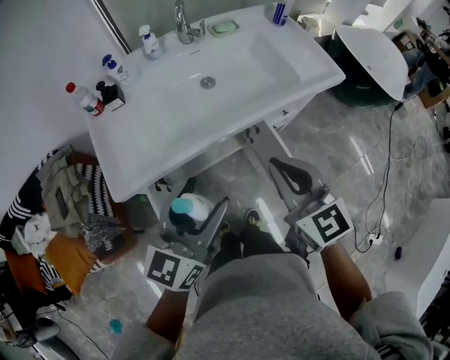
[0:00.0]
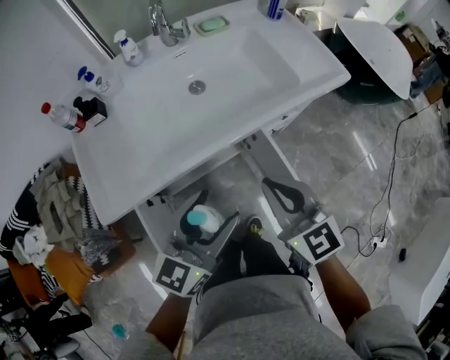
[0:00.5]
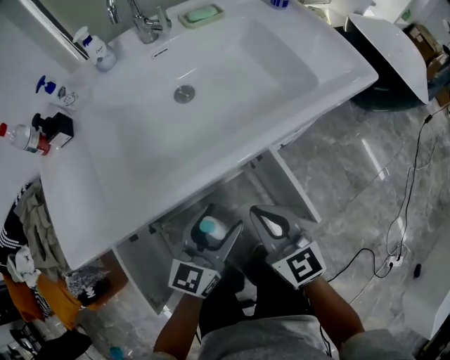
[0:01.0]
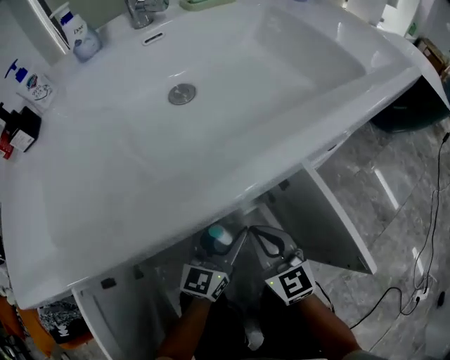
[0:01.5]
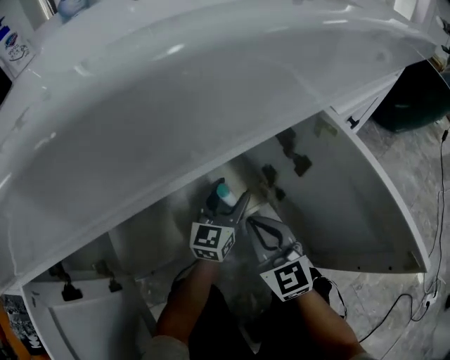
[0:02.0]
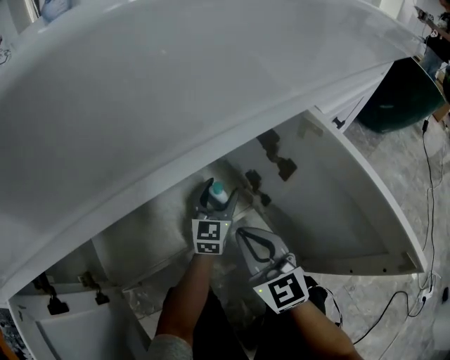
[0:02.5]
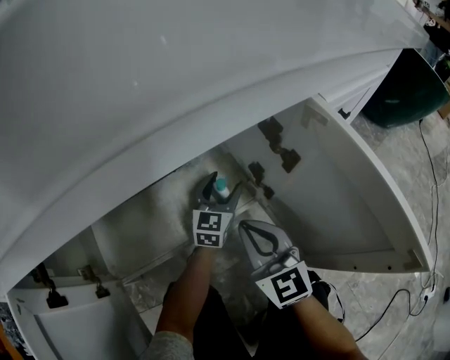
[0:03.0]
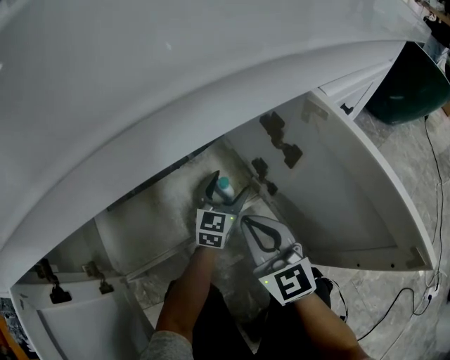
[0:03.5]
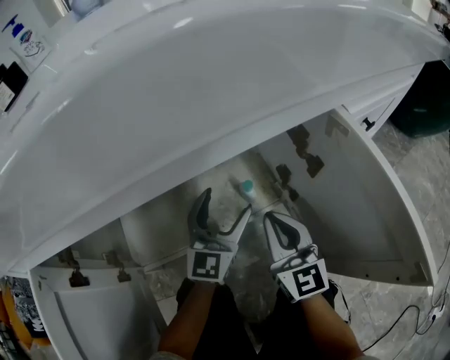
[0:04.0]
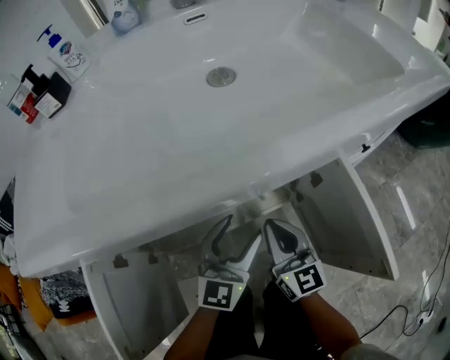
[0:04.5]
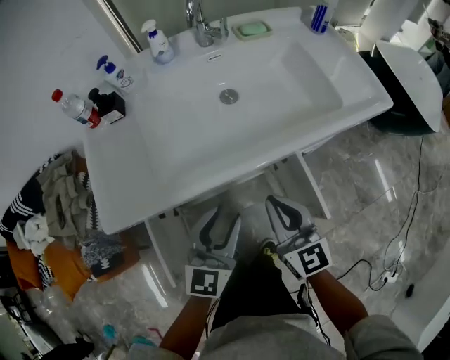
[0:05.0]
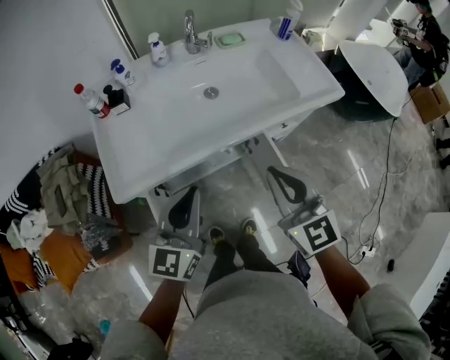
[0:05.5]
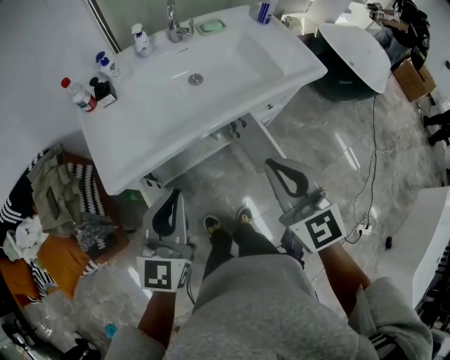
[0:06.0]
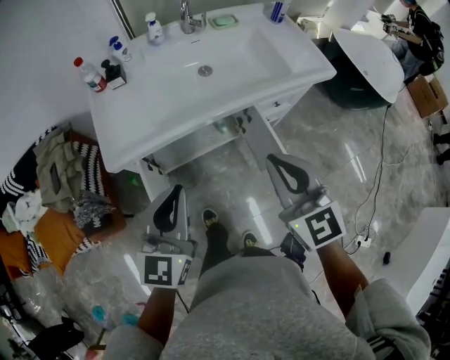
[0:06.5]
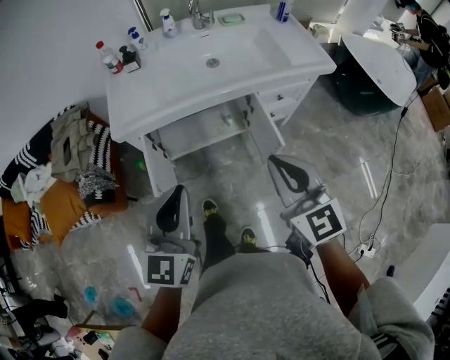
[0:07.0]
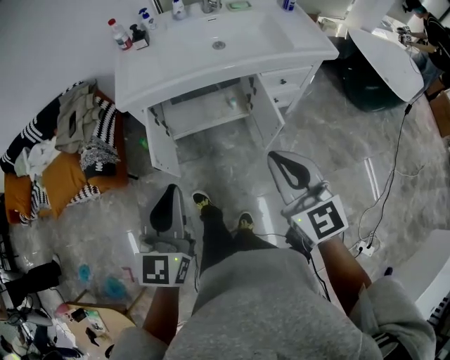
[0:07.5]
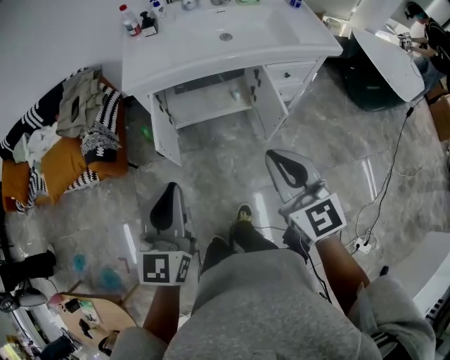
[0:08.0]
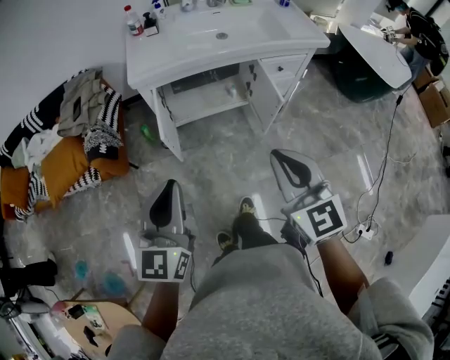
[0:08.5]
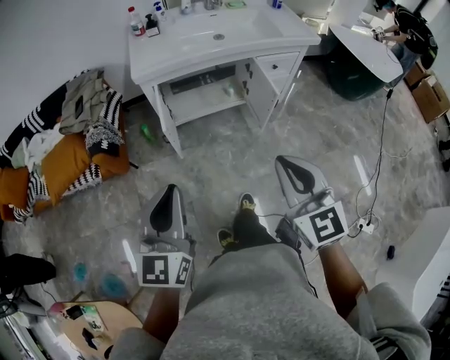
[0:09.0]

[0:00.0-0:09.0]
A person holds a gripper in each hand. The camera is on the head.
0:00.0 to 0:02.0: The left gripper is displaced downward and forward by roughly 70 cm, while the right gripper heads downward, covering some 60 cm.
0:02.0 to 0:04.5: The left gripper is displaced upward and backward by approximately 20 cm; the right gripper is displaced upward by approximately 10 cm, and changes its angle by approximately 20 degrees.
0:04.5 to 0:07.0: Both grippers travel together upward and backward, some 60 cm. The right gripper rotates about 20 degrees. Meanwhile the left gripper rotates approximately 20 degrees, and closes its fingers.
0:07.0 to 0:09.0: The right gripper travels backward by some 30 cm. Meanwhile the left gripper travels backward and to the left by approximately 30 cm.

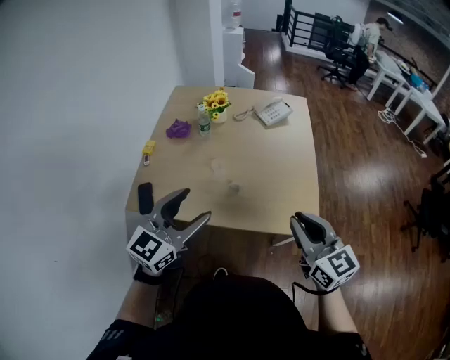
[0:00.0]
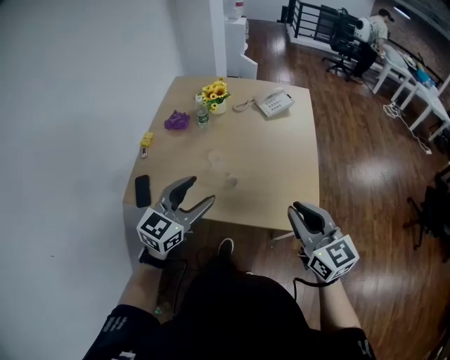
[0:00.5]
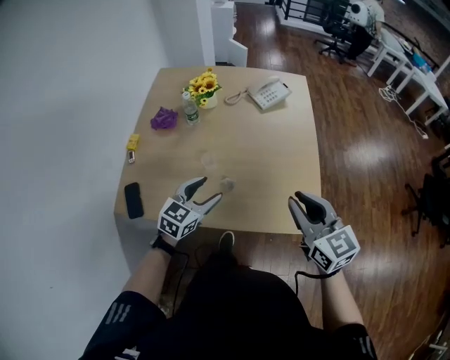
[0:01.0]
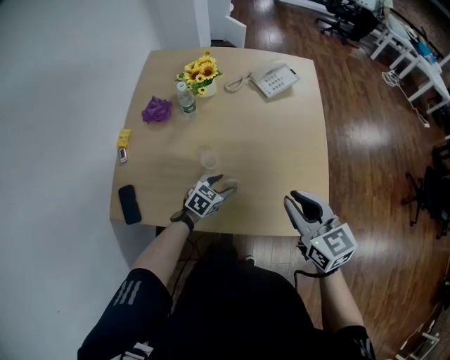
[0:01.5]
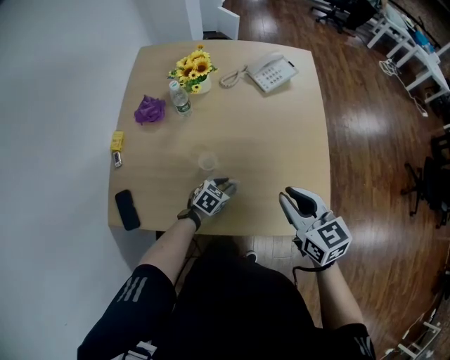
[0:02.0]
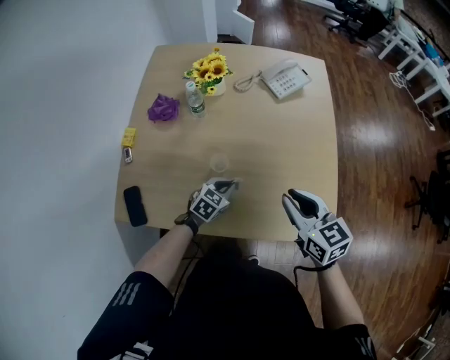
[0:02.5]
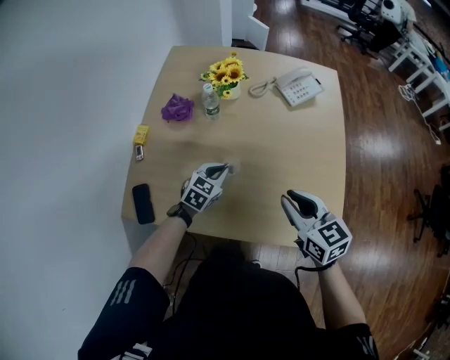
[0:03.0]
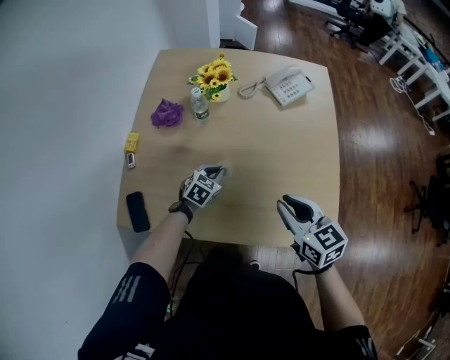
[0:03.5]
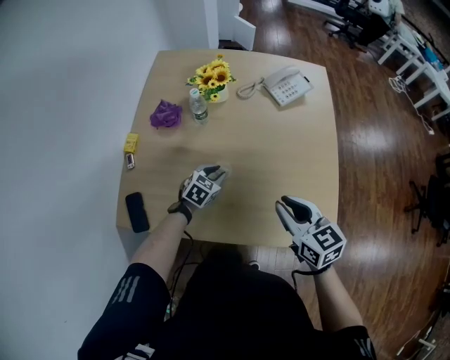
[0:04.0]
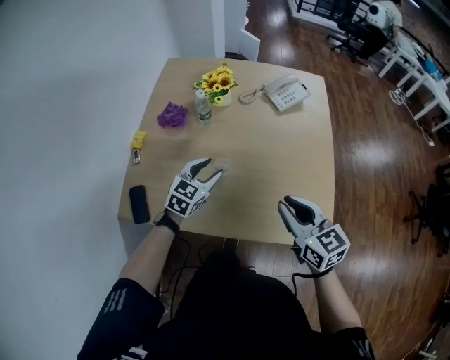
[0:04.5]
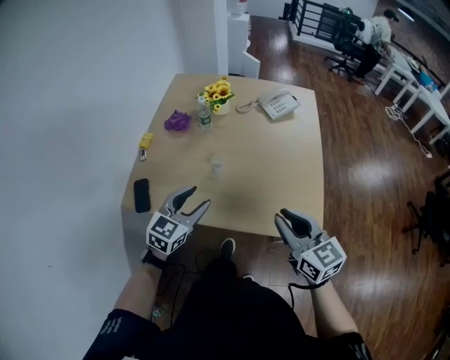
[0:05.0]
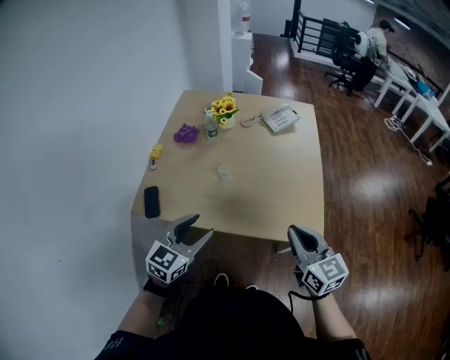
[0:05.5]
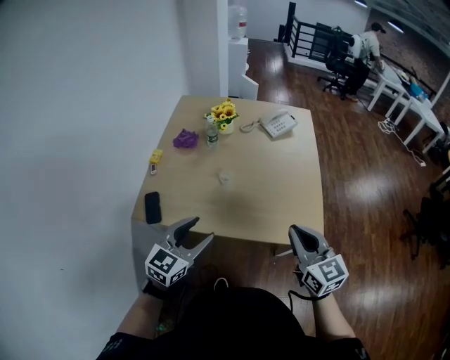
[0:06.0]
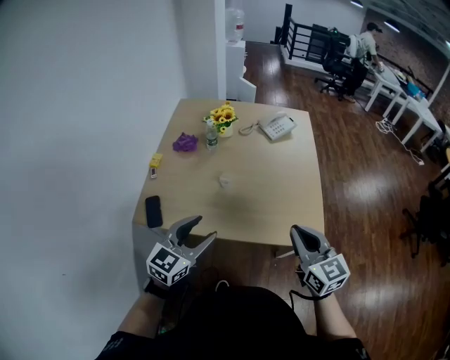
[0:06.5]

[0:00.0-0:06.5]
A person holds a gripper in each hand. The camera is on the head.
0:00.0 to 0:02.0: The right gripper goes about 25 cm forward and downward, while the left gripper shifts approximately 50 cm downward and forward, angles its fingers downward, by roughly 40 degrees, and closes its fingers.
0:02.0 to 0:04.5: The left gripper goes up and down, roughly 20 cm each way, reversing 2 times, and rotates roughly 30 degrees; the right gripper shifts by approximately 5 cm.
0:04.5 to 0:06.5: The right gripper is displaced backward and upward by roughly 20 cm. The left gripper goes approximately 30 cm backward and upward.

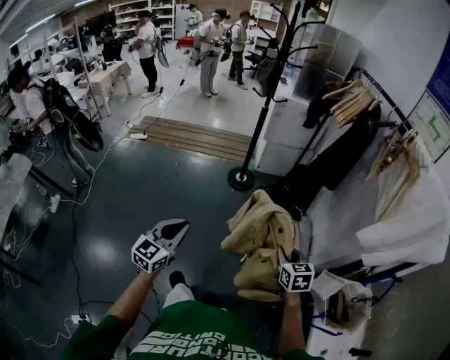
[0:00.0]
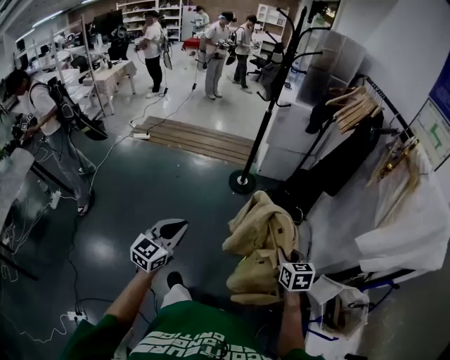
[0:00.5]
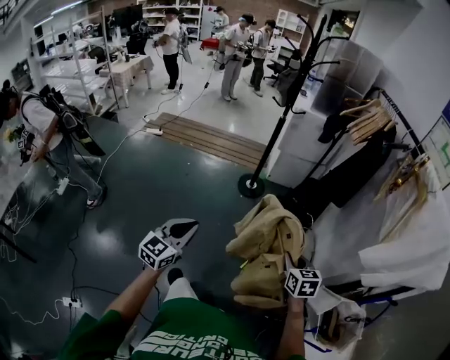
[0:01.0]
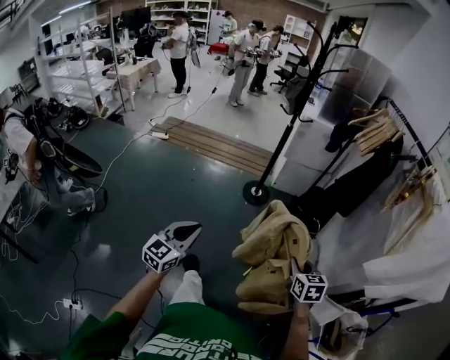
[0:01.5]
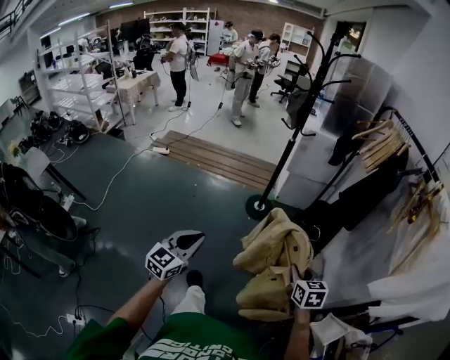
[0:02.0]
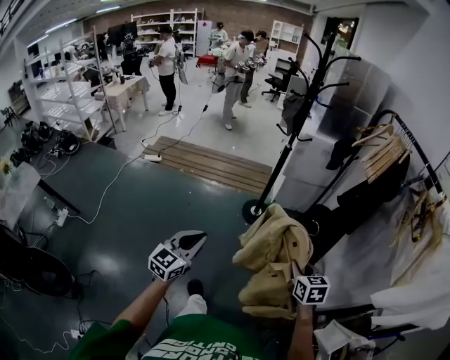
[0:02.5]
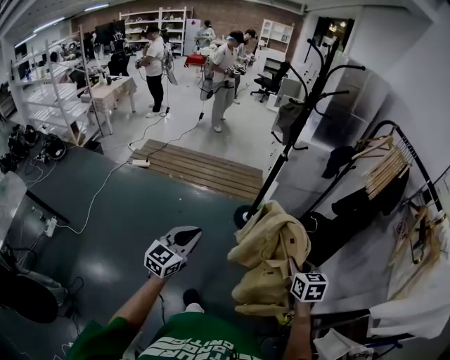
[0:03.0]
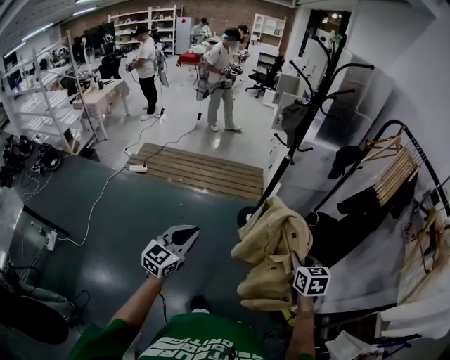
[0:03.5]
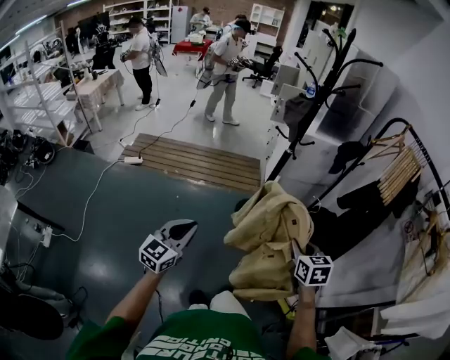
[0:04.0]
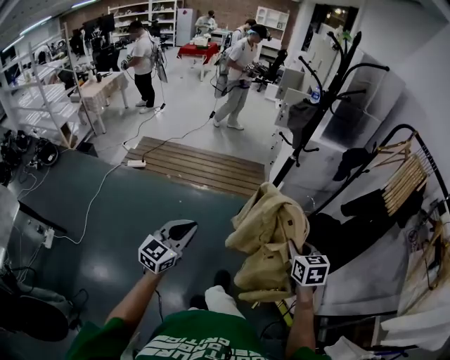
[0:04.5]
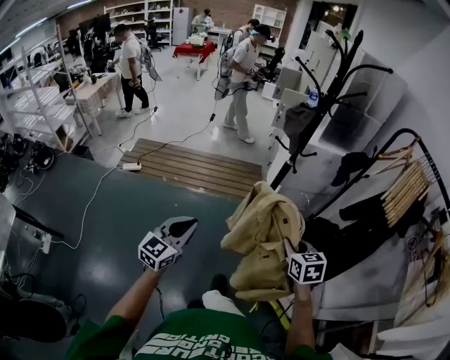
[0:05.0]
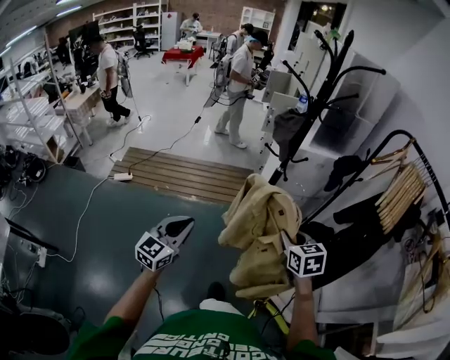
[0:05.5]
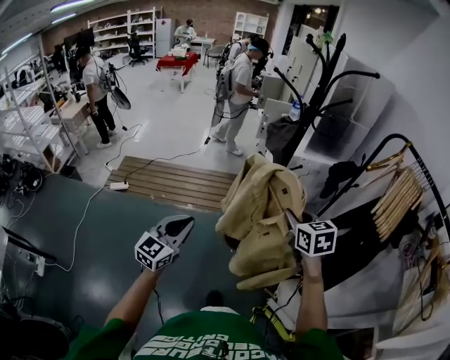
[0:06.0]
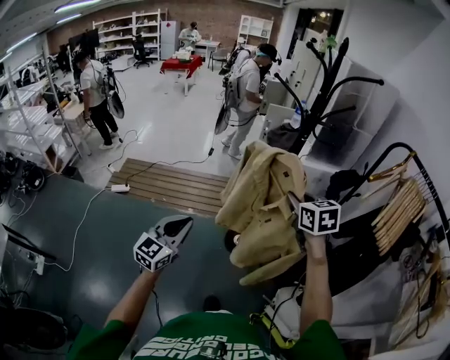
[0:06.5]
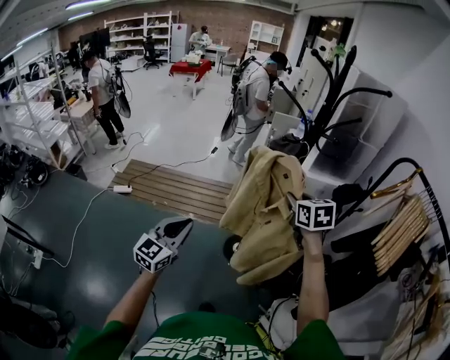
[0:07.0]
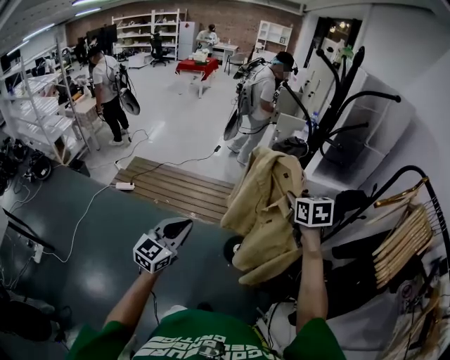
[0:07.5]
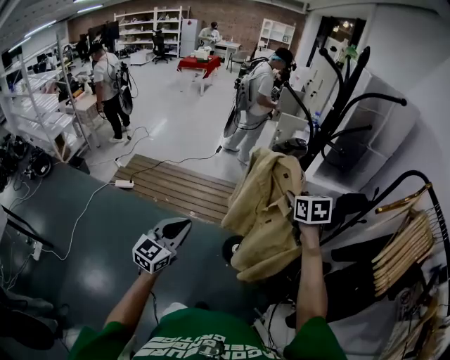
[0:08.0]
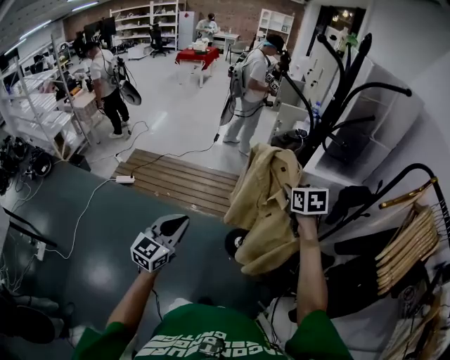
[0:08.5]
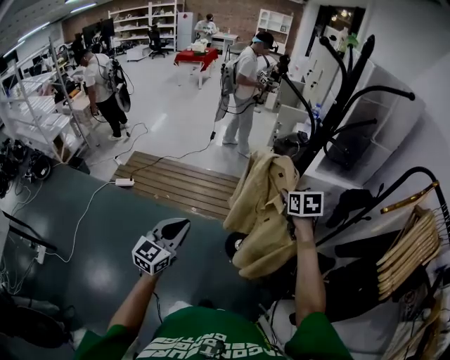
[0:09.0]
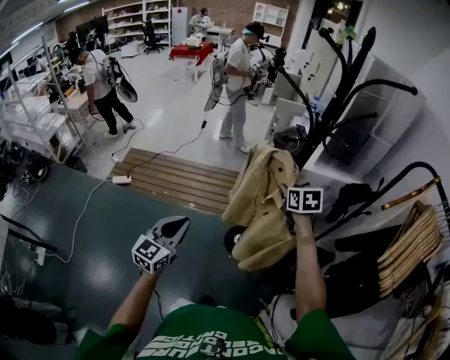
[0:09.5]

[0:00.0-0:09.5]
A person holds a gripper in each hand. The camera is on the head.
0:00.0 to 0:02.0: The grippers both shift forward by about 10 cm.
0:02.0 to 0:04.0: Both grippers travel together forward and to the left, about 30 cm.
0:04.0 to 0:05.5: The grippers both shift forward by about 15 cm.
0:05.5 to 0:07.5: The right gripper goes some 25 cm forward. The left gripper shifts roughly 15 cm forward.
0:07.5 to 0:09.5: The left gripper shifts by roughly 5 cm, while the right gripper shifts some 10 cm forward and downward.

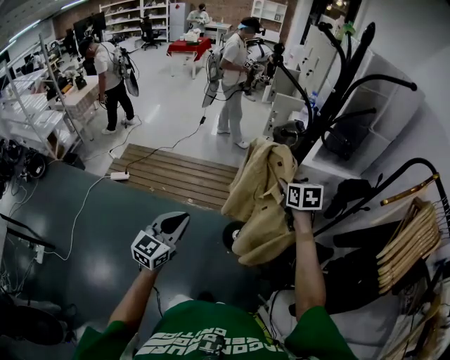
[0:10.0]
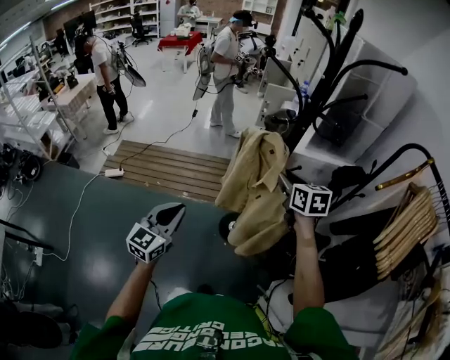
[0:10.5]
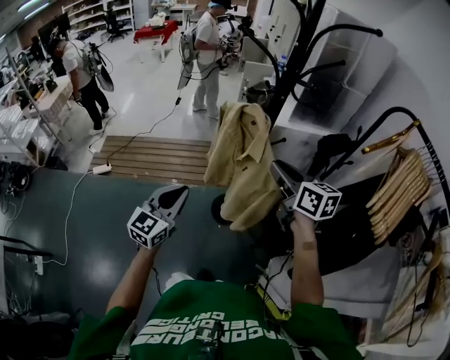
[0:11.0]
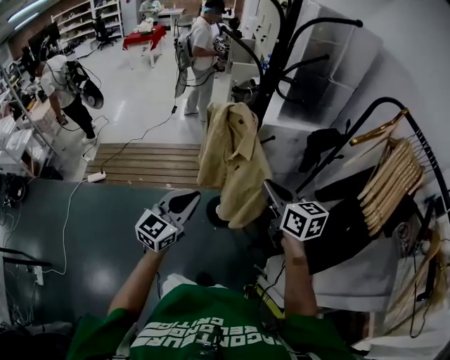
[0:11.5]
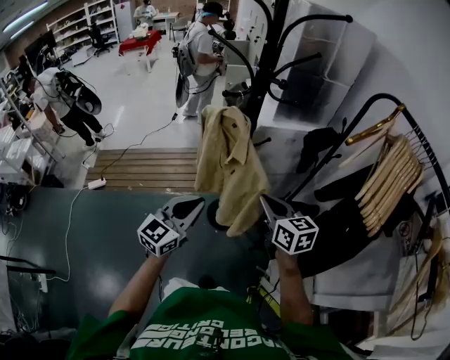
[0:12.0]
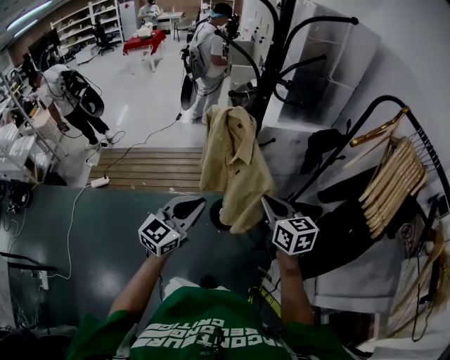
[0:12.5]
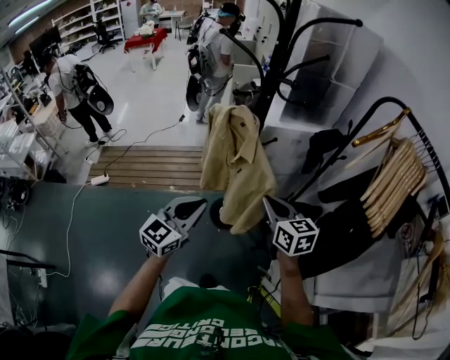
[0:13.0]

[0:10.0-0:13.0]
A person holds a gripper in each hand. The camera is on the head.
0:10.0 to 0:11.5: The right gripper is displaced backward by about 20 cm, and swivels roughly 20 degrees; the left gripper moves to the right, some 15 cm.
0:11.5 to 0:13.0: There are only small adjustments of the grippers.
